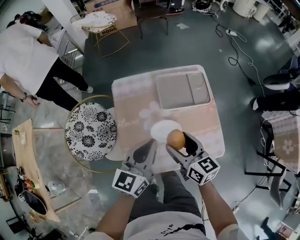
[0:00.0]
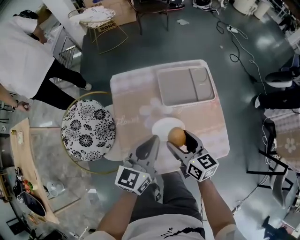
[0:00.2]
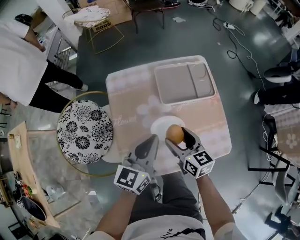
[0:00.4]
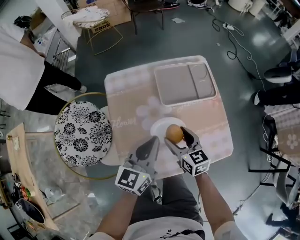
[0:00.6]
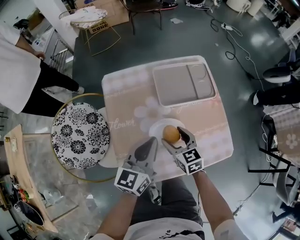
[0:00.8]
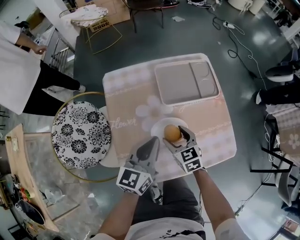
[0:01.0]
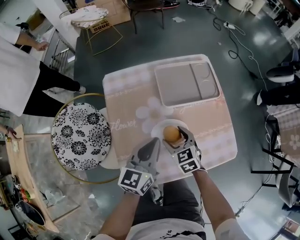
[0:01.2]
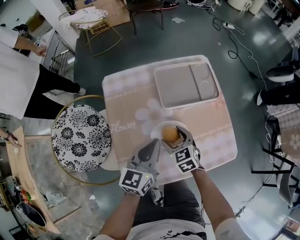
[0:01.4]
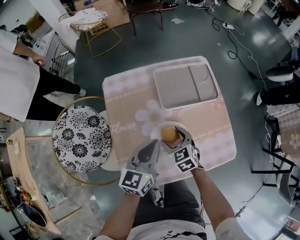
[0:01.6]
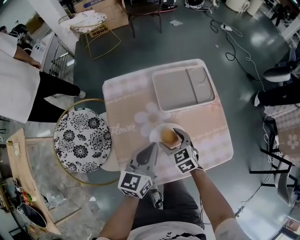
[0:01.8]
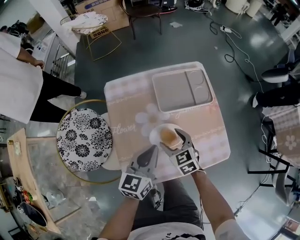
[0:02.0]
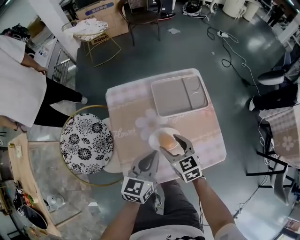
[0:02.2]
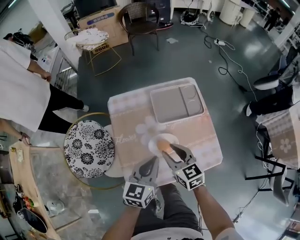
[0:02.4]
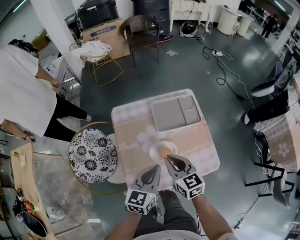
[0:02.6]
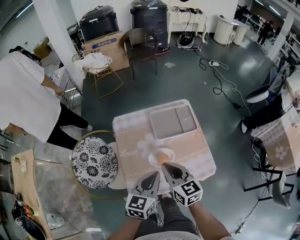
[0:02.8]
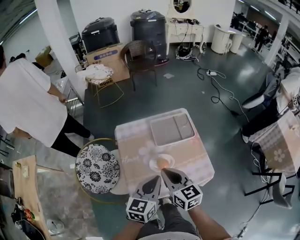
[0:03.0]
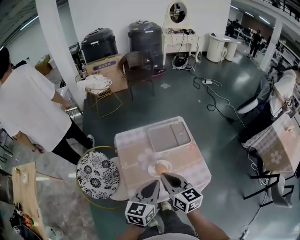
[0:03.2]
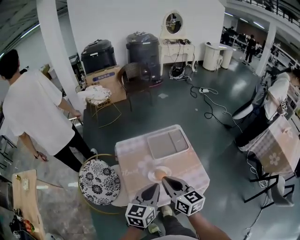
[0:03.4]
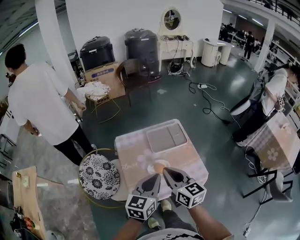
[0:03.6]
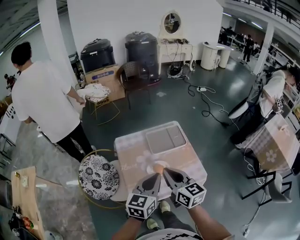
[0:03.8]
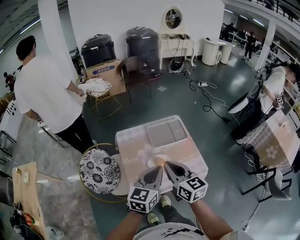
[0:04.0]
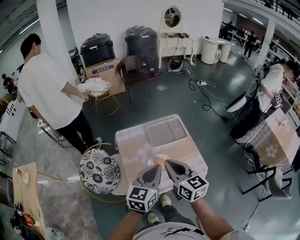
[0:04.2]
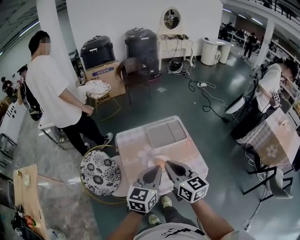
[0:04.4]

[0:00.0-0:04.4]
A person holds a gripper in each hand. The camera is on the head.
0:00.0 to 0:01.4: Both grippers move downward, approximately 20 cm. The right gripper swivels approximately 40 degrees.
0:01.4 to 0:03.0: The right gripper shifts about 30 cm upward, swivels some 30 degrees, and closes; the left gripper goes approximately 20 cm upward and backward.
0:03.0 to 0:04.4: The two grippers go about 10 cm upward.

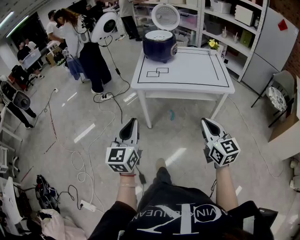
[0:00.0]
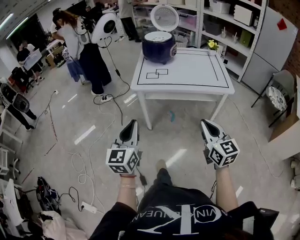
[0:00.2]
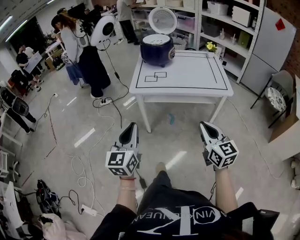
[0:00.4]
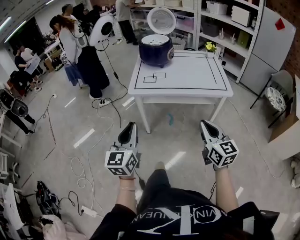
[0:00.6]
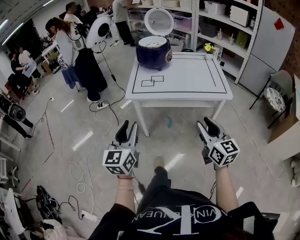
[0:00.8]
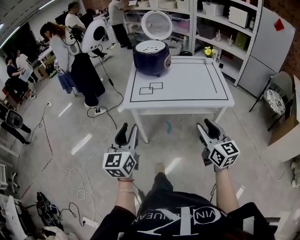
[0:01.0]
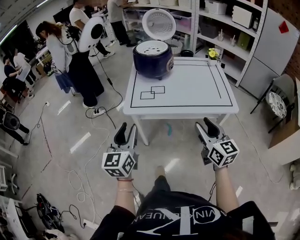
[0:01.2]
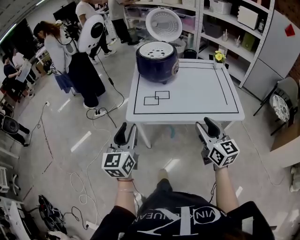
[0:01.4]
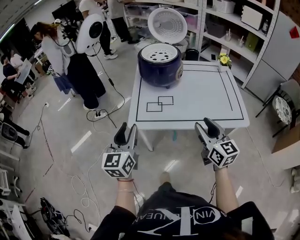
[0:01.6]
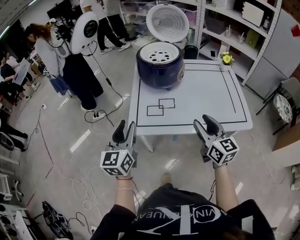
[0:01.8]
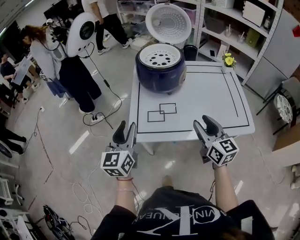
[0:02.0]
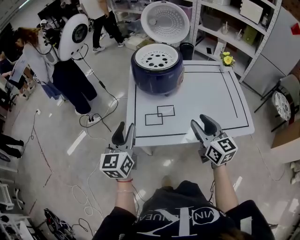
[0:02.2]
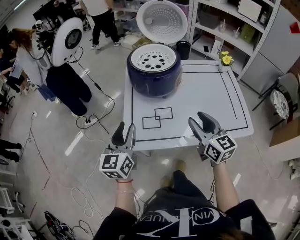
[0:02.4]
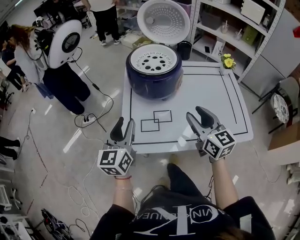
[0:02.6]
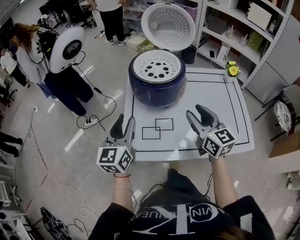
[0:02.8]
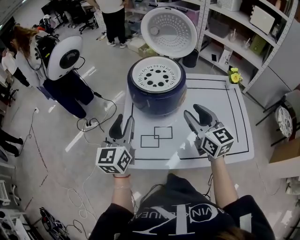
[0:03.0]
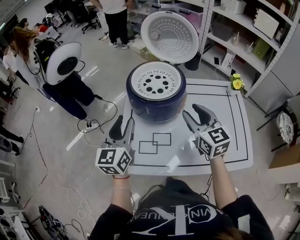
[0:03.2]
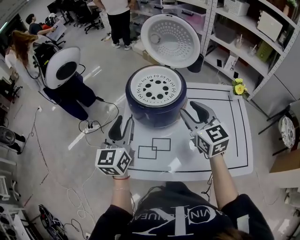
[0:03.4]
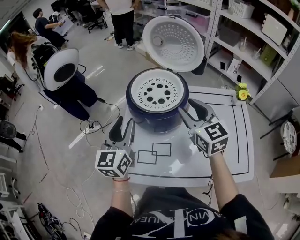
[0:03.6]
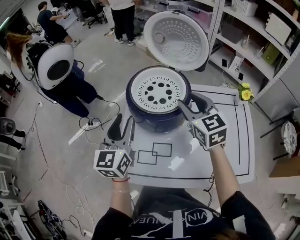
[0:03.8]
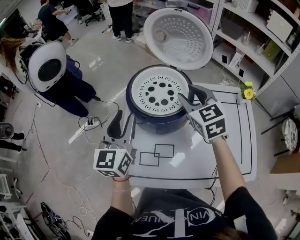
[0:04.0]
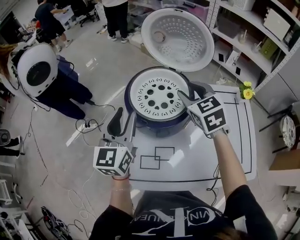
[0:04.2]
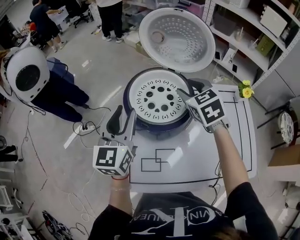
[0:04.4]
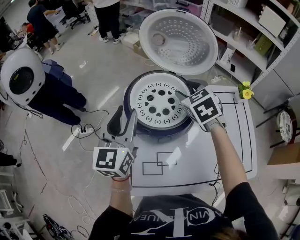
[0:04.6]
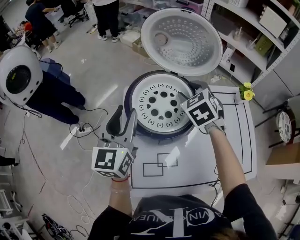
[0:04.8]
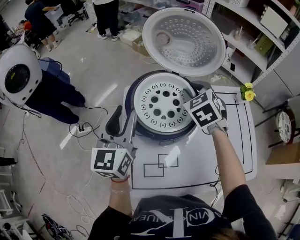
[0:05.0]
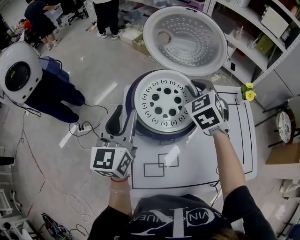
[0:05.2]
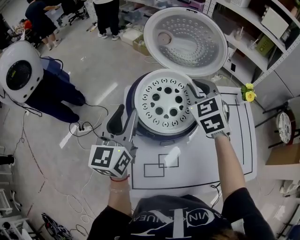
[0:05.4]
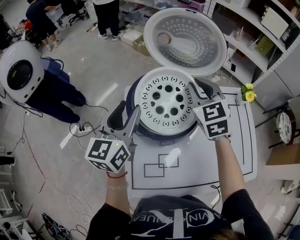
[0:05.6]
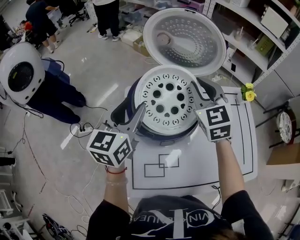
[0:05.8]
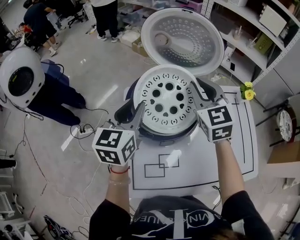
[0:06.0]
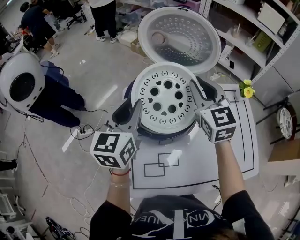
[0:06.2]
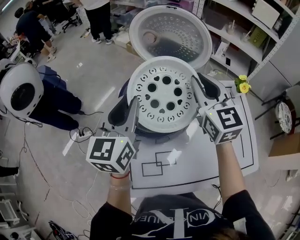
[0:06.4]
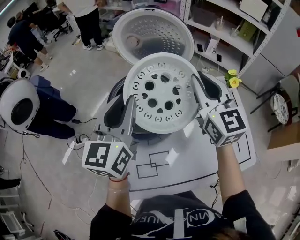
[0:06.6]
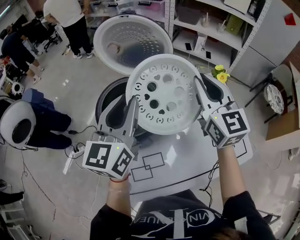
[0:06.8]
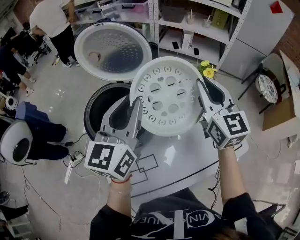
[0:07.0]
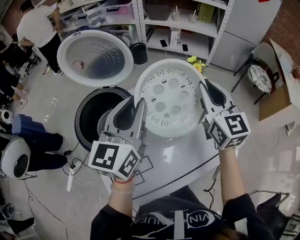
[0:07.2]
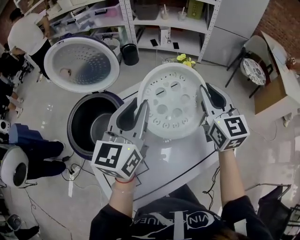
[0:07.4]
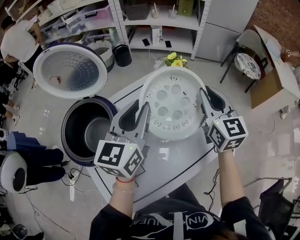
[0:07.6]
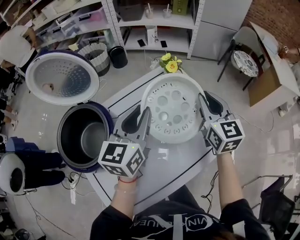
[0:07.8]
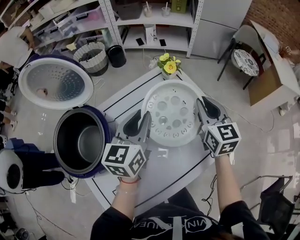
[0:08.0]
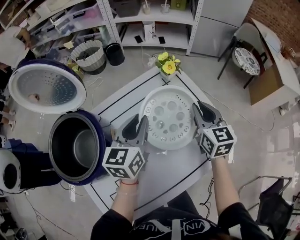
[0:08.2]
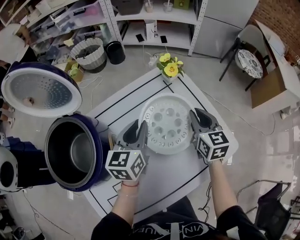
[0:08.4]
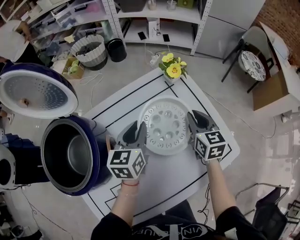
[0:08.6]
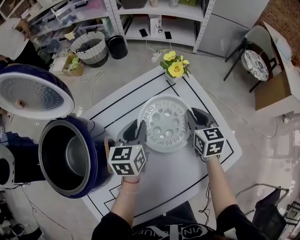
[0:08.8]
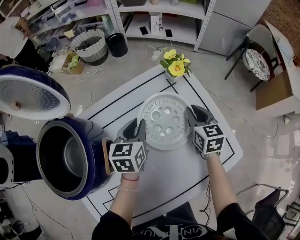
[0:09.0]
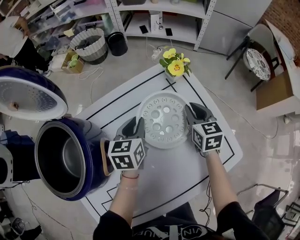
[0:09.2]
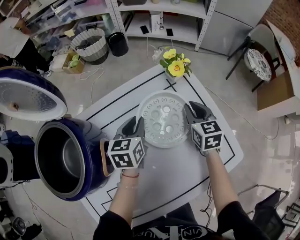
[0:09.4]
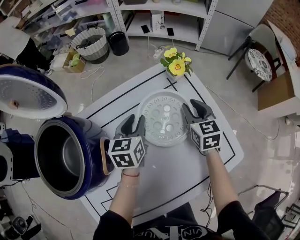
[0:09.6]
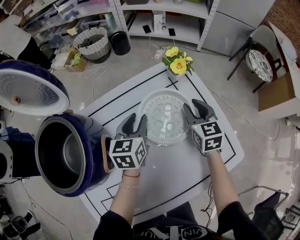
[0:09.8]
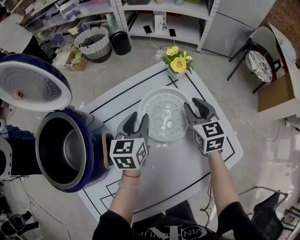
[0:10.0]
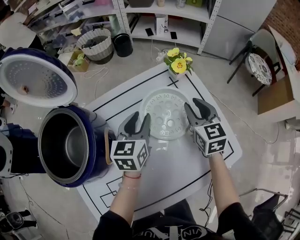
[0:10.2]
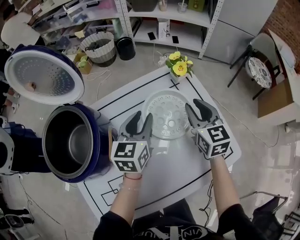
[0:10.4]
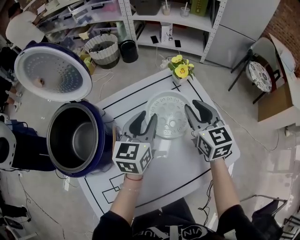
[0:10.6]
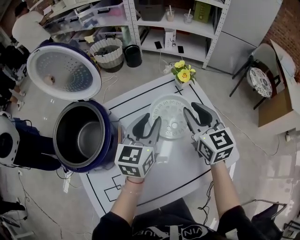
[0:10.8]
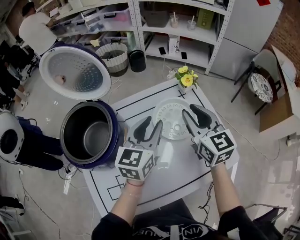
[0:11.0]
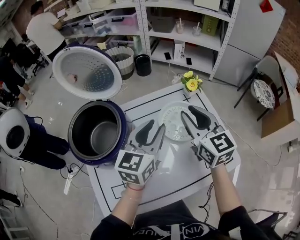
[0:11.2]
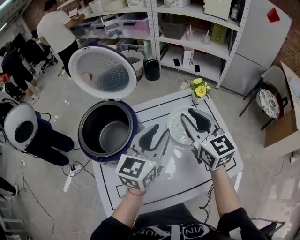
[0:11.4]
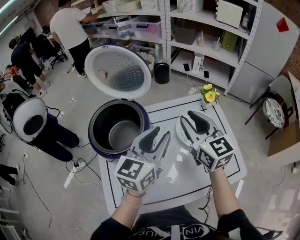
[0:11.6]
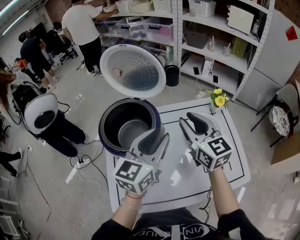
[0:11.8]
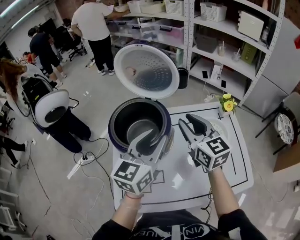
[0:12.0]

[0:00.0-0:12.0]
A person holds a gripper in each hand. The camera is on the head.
0:00.0 to 0:01.6: Both grippers travel together forward, about 30 cm. The left gripper opens its fingers. Meanwhile the right gripper opens its fingers.
0:01.6 to 0:03.0: Both grippers move forward, some 25 cm.
0:03.0 to 0:04.4: The left gripper heads forward, covering about 15 cm, while the right gripper goes about 25 cm forward, and turns by approximately 30 degrees.
0:04.4 to 0:06.0: The right gripper turns by approximately 20 degrees, and closes up, while the left gripper shifts by about 5 cm.
0:06.0 to 0:07.6: The right gripper shifts by roughly 35 cm, and rotates some 40 degrees; the left gripper shifts by some 30 cm, and turns by some 30 degrees.
0:07.6 to 0:09.0: The two grippers go roughly 25 cm downward and forward. The right gripper rotates roughly 20 degrees. Meanwhile the left gripper changes its angle by approximately 30 degrees.
0:09.0 to 0:10.4: Both grippers move upward, about 10 cm.
0:10.4 to 0:12.0: The right gripper goes about 30 cm to the left and upward, and swivels approximately 30 degrees. Meanwhile the left gripper travels upward, to the left and backward by some 25 cm.

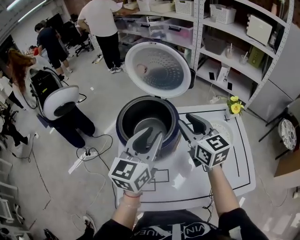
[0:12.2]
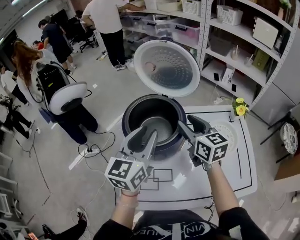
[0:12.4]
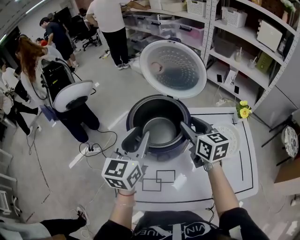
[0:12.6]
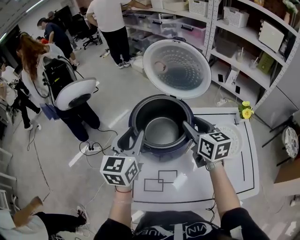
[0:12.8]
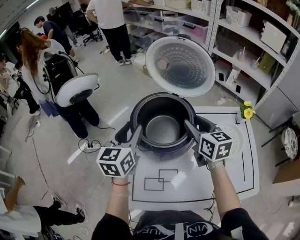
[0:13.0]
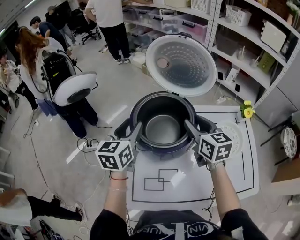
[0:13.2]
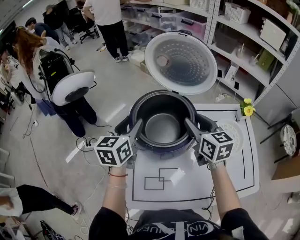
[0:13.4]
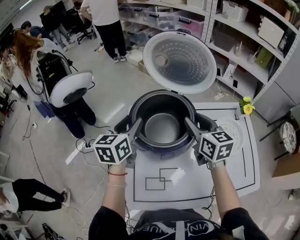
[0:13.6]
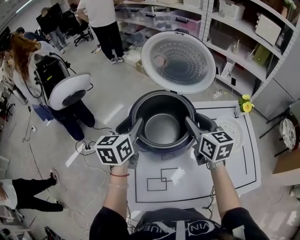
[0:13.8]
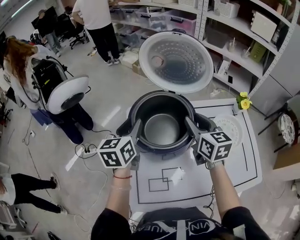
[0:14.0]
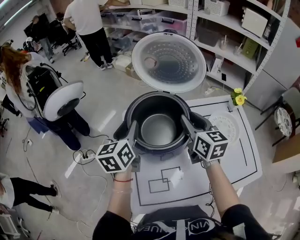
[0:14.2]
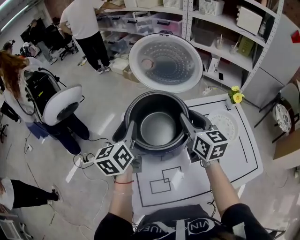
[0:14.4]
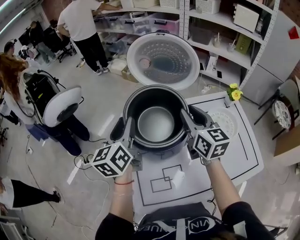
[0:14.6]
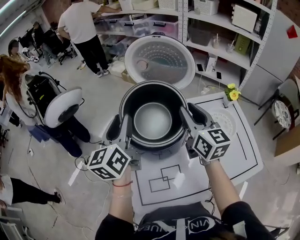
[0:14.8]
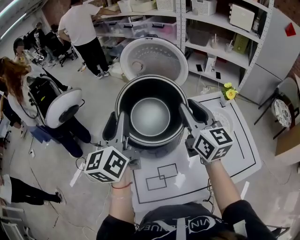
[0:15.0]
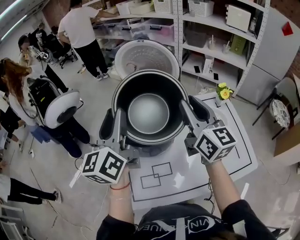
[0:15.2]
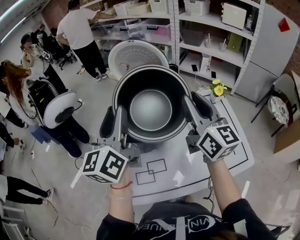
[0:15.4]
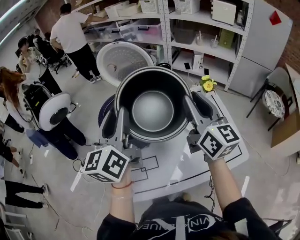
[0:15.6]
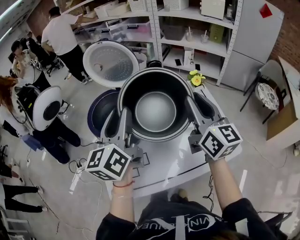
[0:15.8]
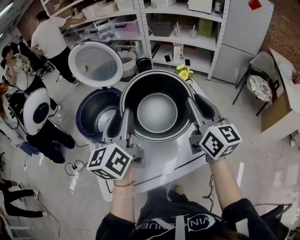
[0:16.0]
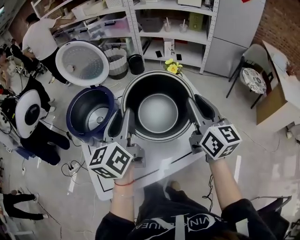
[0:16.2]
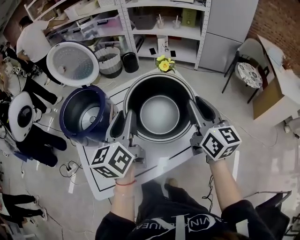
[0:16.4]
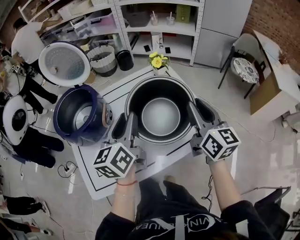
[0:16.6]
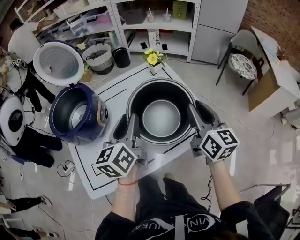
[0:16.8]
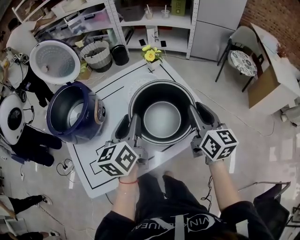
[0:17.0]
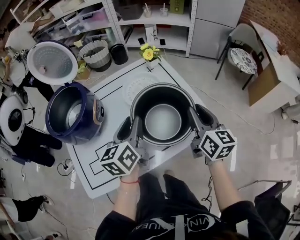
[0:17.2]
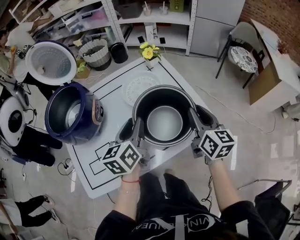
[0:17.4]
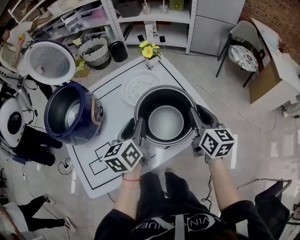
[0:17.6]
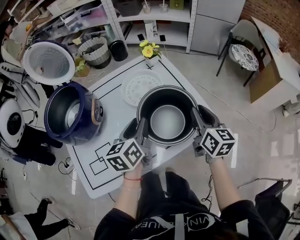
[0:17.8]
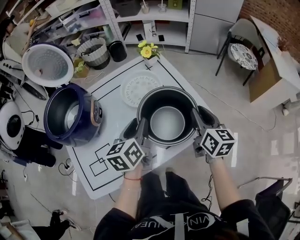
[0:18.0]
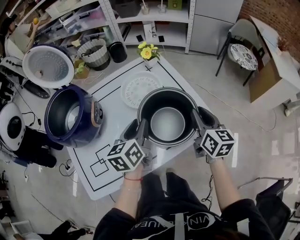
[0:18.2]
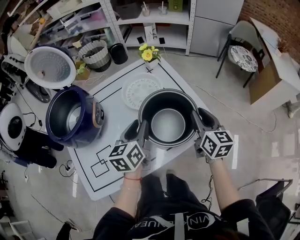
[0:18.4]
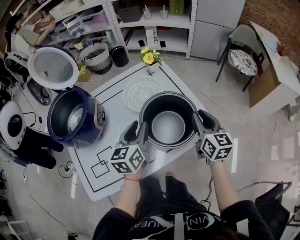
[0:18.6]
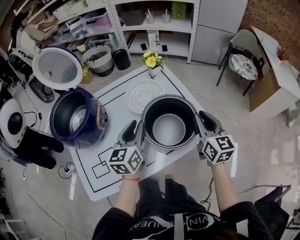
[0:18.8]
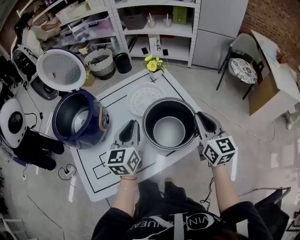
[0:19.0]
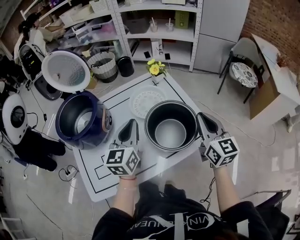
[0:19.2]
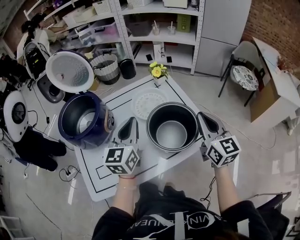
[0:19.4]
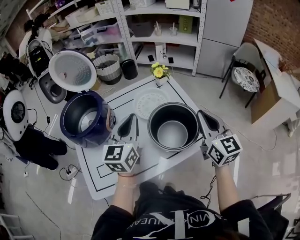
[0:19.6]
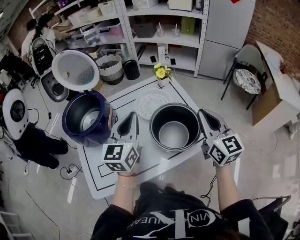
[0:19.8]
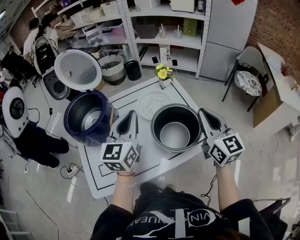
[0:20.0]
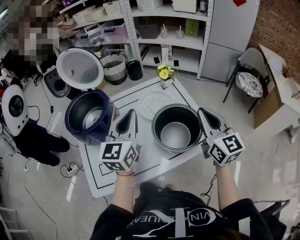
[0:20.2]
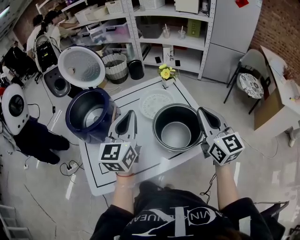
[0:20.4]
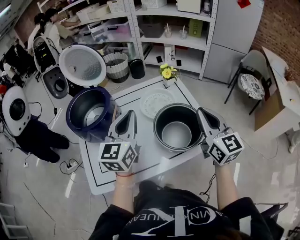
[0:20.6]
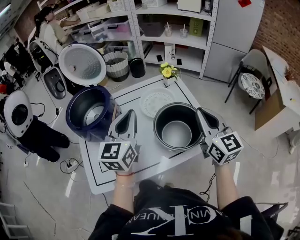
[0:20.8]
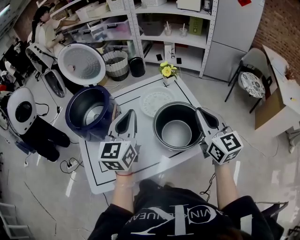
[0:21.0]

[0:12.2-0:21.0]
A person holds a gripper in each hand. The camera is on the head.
0:12.2 to 0:13.6: The left gripper travels to the left, forward and downward by about 20 cm, while the right gripper changes place by approximately 5 cm.
0:13.6 to 0:15.2: The right gripper travels upward, backward and to the right by approximately 15 cm, and turns by approximately 30 degrees; the left gripper goes approximately 20 cm upward and backward, and rotates some 30 degrees.
0:15.2 to 0:16.6: The left gripper is displaced to the right and downward by about 35 cm, and turns by roughly 30 degrees. The right gripper moves to the right and backward, some 35 cm, and swivels roughly 20 degrees.
0:16.6 to 0:18.0: The grippers both shift downward and to the right by approximately 15 cm.
0:18.0 to 0:19.6: The two grippers go some 10 cm upward. The left gripper changes its angle by about 30 degrees, and closes its fingers. The right gripper turns by about 20 degrees, and closes up.
0:19.6 to 0:21.0: The grippers stay close to where they were, moving slightly.
